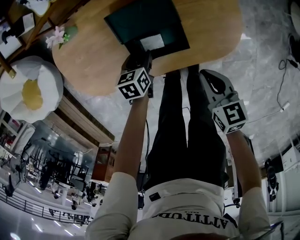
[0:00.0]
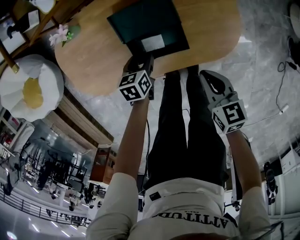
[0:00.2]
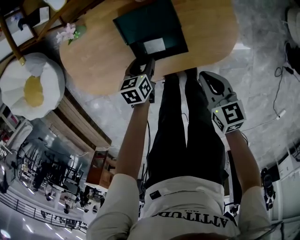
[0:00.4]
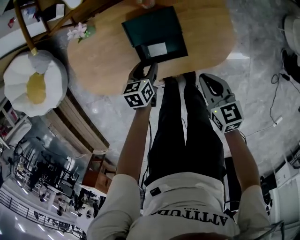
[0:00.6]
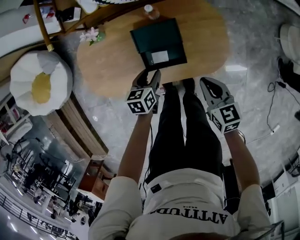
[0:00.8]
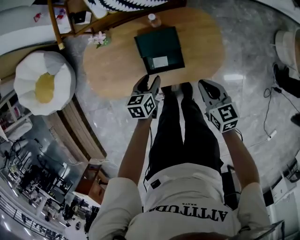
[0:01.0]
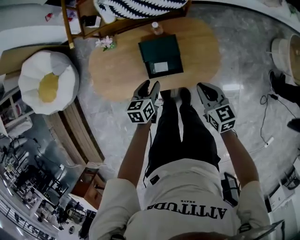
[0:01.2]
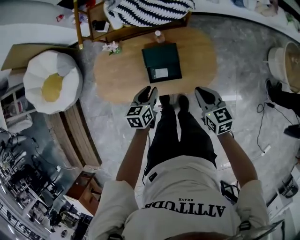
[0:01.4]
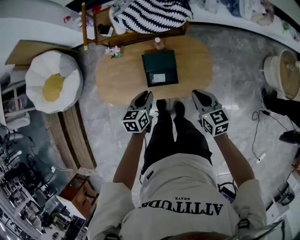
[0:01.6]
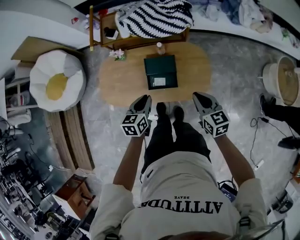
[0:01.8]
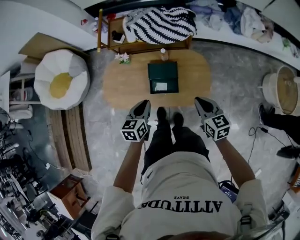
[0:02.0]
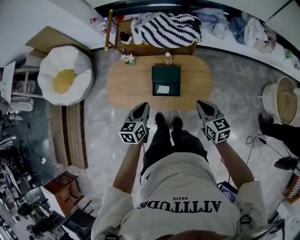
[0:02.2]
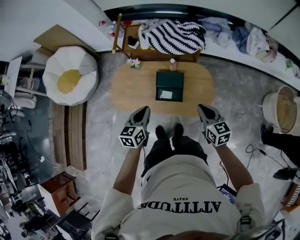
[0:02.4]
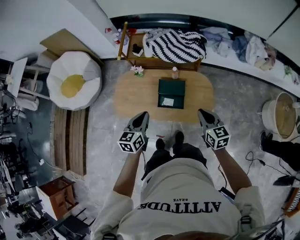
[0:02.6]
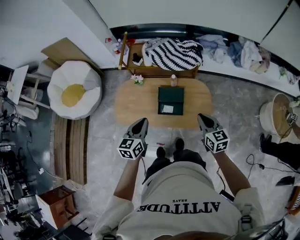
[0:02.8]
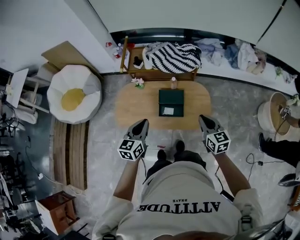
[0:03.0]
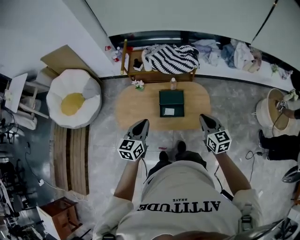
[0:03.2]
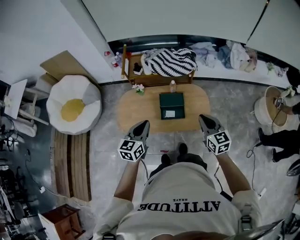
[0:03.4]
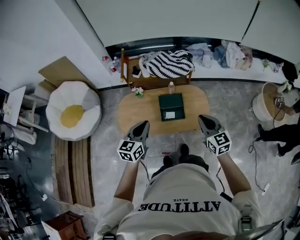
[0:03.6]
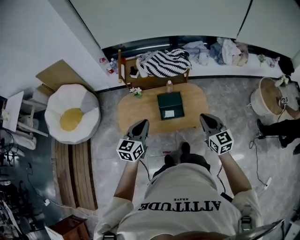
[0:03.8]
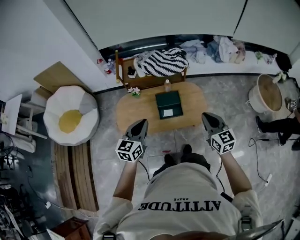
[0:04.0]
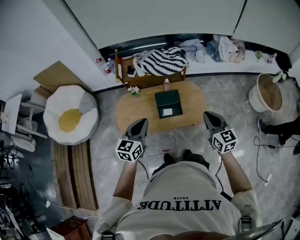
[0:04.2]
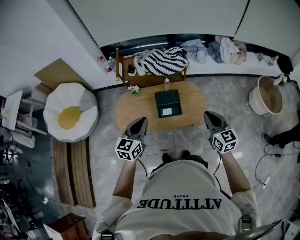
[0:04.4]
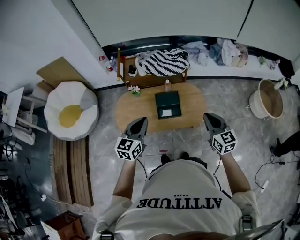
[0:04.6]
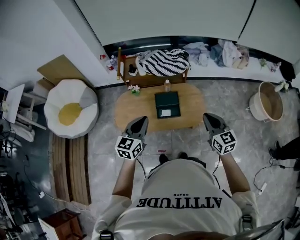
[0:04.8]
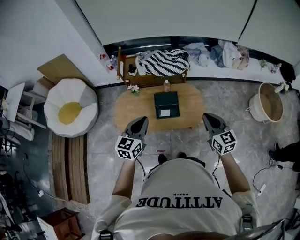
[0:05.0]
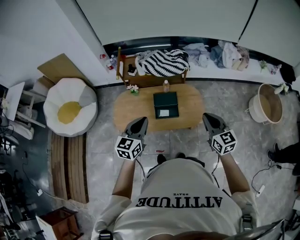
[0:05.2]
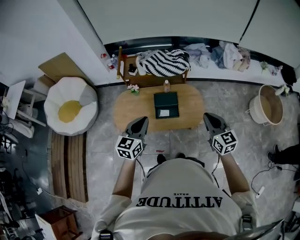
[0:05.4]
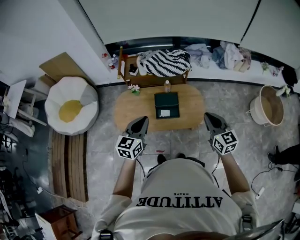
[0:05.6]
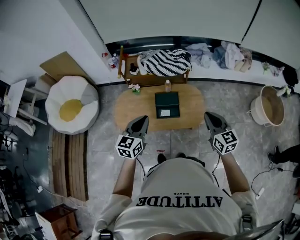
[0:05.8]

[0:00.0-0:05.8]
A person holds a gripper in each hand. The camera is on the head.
0:00.0 to 0:01.4: Both grippers move upward, approximately 30 cm. The left gripper closes.
0:01.4 to 0:02.8: The right gripper goes about 15 cm upward. Meanwhile the left gripper is displaced upward and backward by some 25 cm, rotates some 20 degrees, and closes its fingers.
0:02.8 to 0:04.4: The right gripper shifts about 15 cm backward and upward; the left gripper moves upward, backward and to the left, about 15 cm, and changes its angle by roughly 20 degrees.
0:04.4 to 0:05.8: The grippers make only small movements.

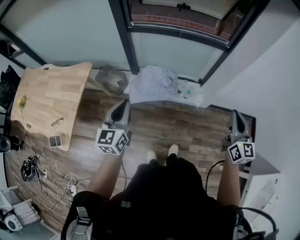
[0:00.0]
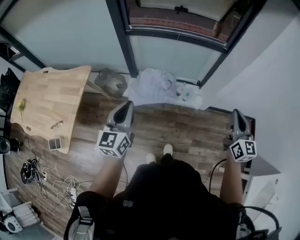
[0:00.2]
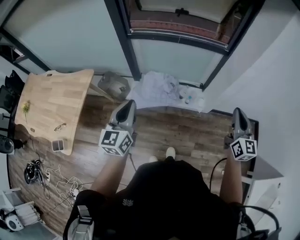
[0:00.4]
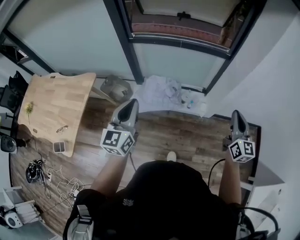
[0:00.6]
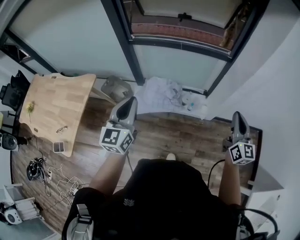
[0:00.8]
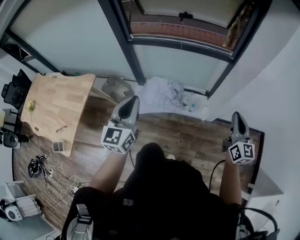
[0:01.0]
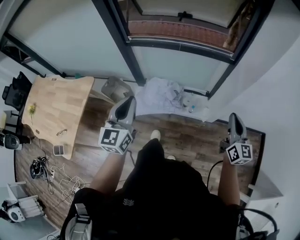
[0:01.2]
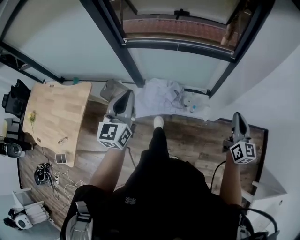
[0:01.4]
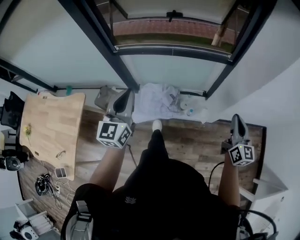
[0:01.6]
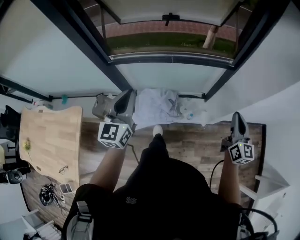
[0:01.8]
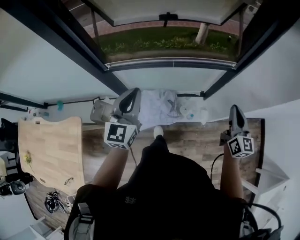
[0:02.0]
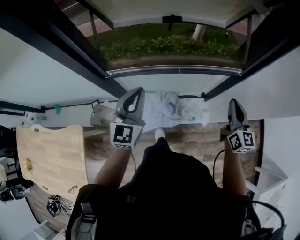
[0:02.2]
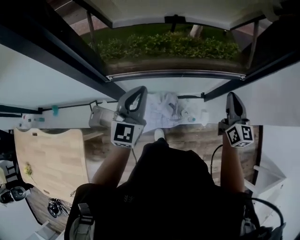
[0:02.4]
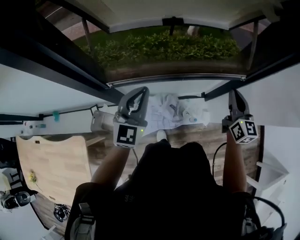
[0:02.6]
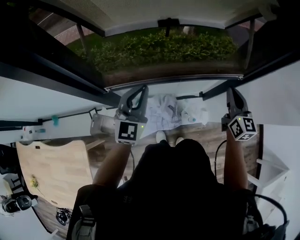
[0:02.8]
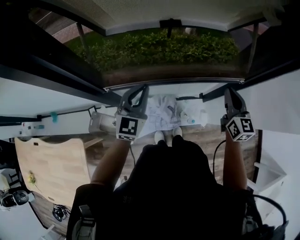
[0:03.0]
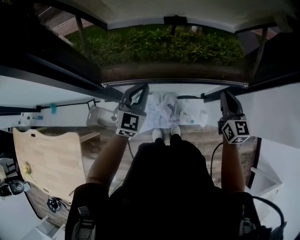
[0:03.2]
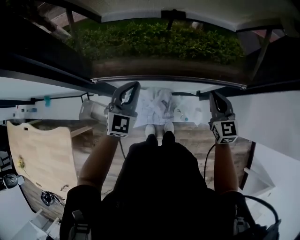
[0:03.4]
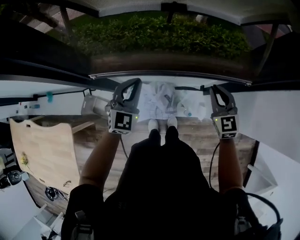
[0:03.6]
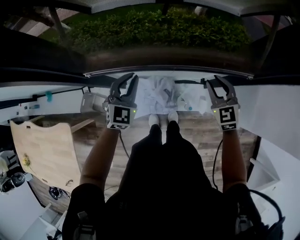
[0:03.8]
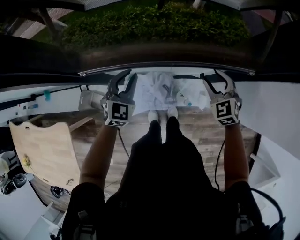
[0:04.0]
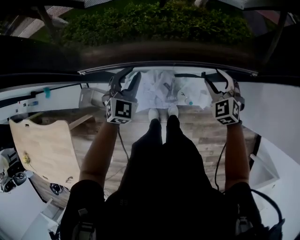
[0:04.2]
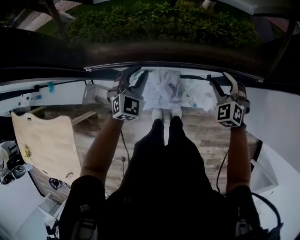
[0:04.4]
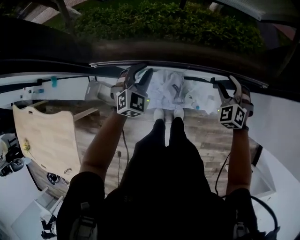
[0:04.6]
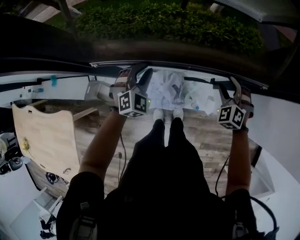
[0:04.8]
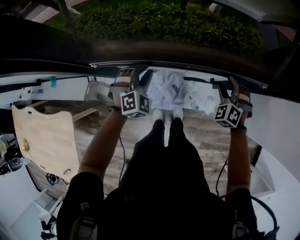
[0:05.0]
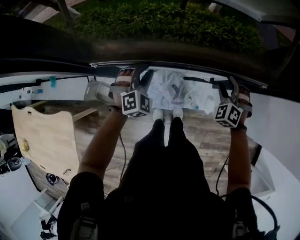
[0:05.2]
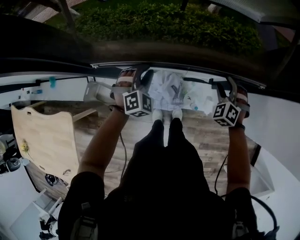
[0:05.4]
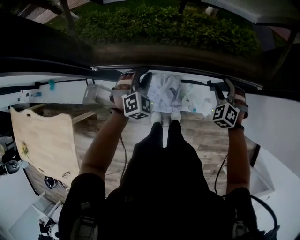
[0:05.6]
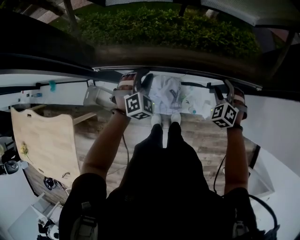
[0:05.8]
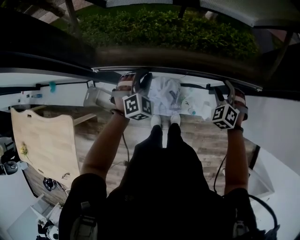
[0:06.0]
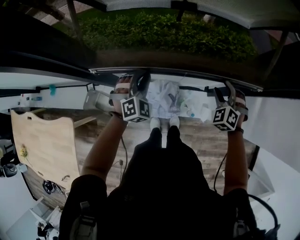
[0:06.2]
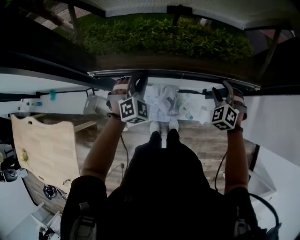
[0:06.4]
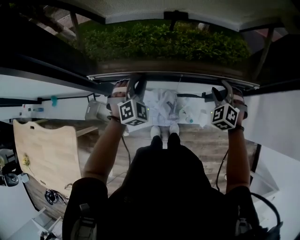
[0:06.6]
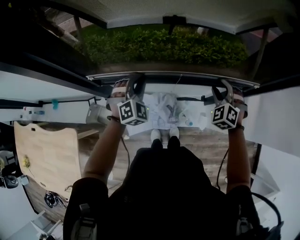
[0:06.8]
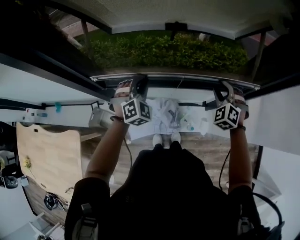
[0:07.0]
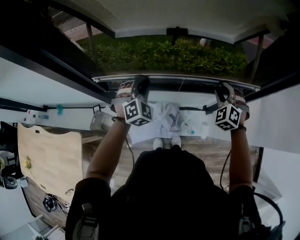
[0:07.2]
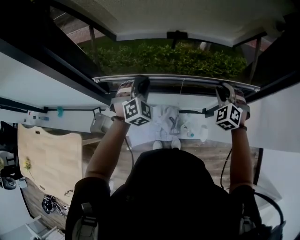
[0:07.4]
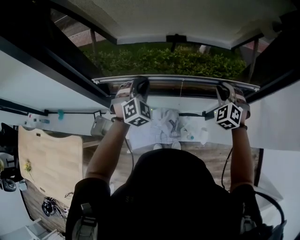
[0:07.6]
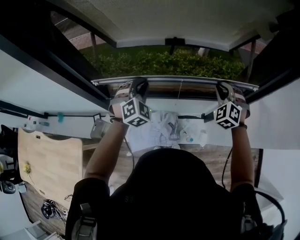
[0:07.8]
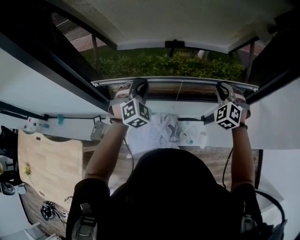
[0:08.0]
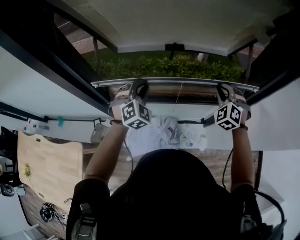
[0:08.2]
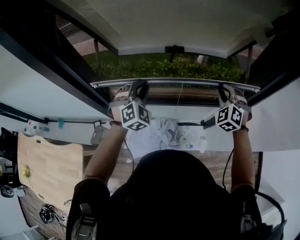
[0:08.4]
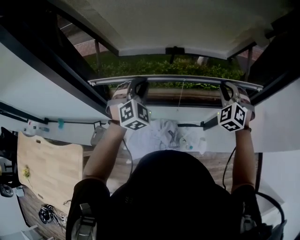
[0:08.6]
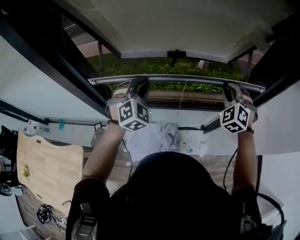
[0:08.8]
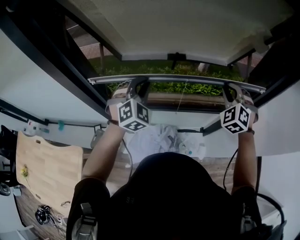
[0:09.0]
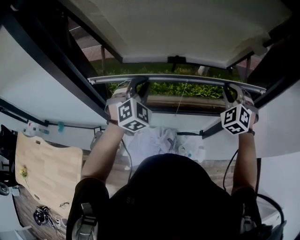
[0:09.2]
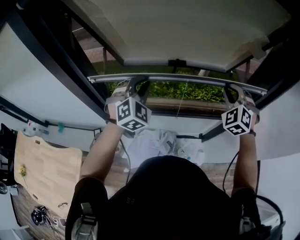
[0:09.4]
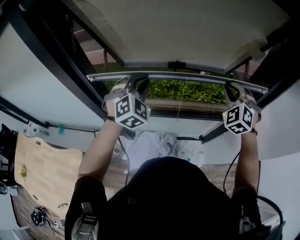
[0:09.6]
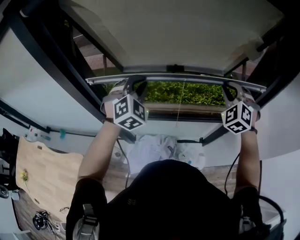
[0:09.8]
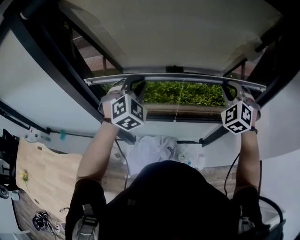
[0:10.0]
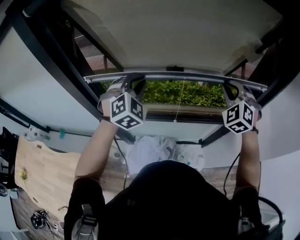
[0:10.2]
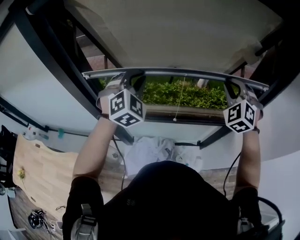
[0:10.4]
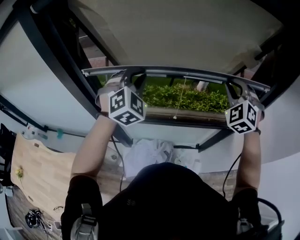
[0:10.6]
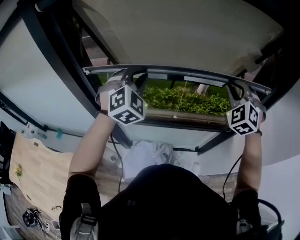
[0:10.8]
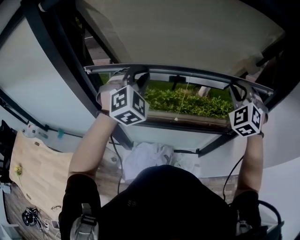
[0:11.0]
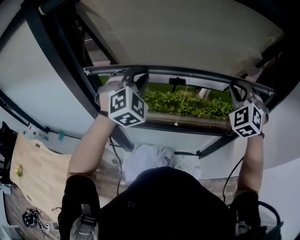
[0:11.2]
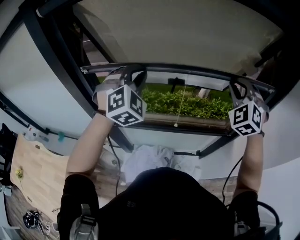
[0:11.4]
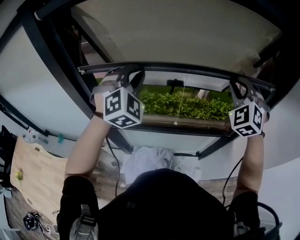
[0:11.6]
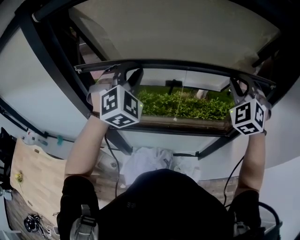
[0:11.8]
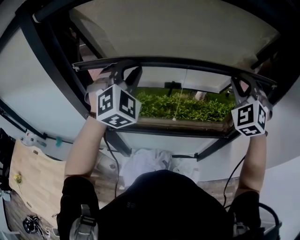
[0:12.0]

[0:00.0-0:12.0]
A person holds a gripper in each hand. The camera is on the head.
0:00.0 to 0:01.6: The grippers both shift forward by approximately 25 cm.
0:01.6 to 0:03.0: The left gripper goes approximately 35 cm forward, and changes its angle by about 20 degrees, while the right gripper goes approximately 40 cm forward and to the left.
0:03.0 to 0:04.4: Both grippers move downward, approximately 20 cm. The right gripper rotates around the line of its fingers by roughly 60 degrees, counterclockwise from behind, and opens its fingers, while the left gripper swivels approximately 30 degrees, and opens.
0:06.0 to 0:07.6: Both grippers travel together upward, roughly 15 cm. The right gripper closes its fingers.
0:07.6 to 0:09.0: The two grippers go about 10 cm upward.
0:09.0 to 0:10.4: The grippers both shift upward by some 10 cm.
0:10.4 to 0:12.0: Both grippers move upward, roughly 10 cm.

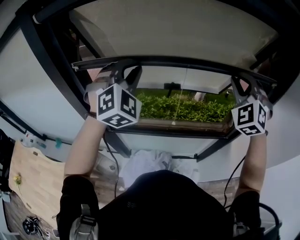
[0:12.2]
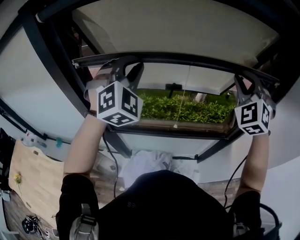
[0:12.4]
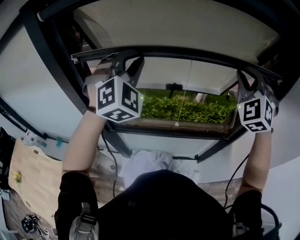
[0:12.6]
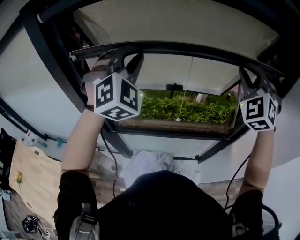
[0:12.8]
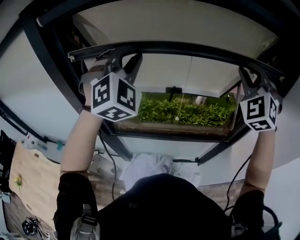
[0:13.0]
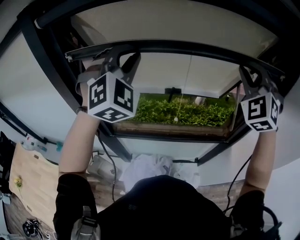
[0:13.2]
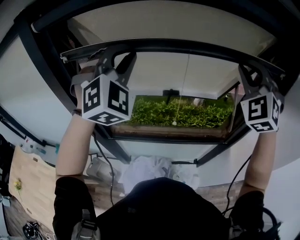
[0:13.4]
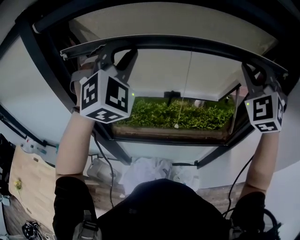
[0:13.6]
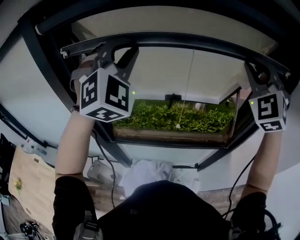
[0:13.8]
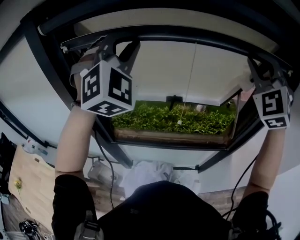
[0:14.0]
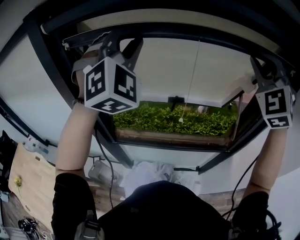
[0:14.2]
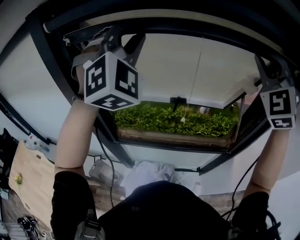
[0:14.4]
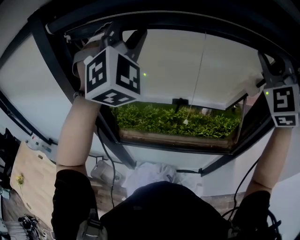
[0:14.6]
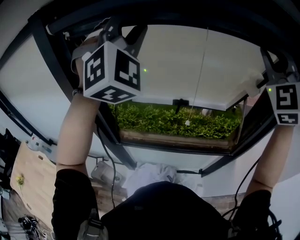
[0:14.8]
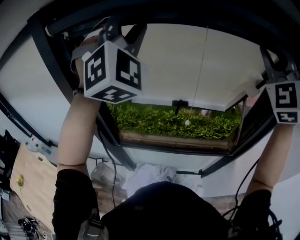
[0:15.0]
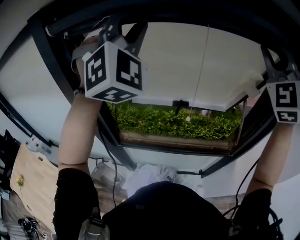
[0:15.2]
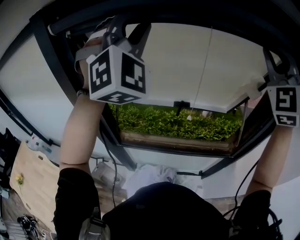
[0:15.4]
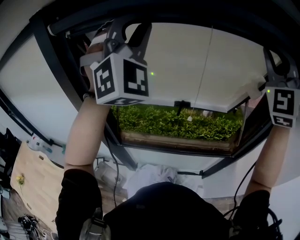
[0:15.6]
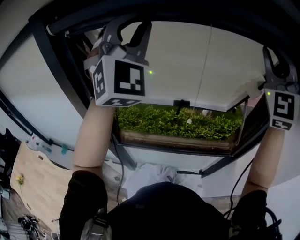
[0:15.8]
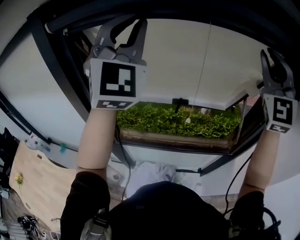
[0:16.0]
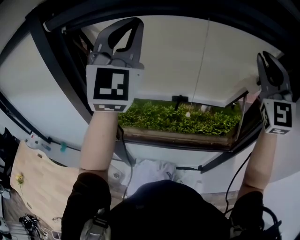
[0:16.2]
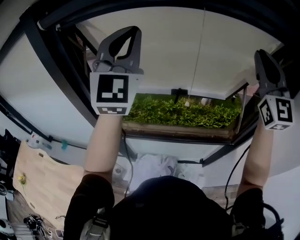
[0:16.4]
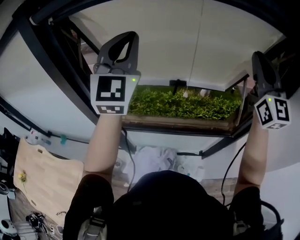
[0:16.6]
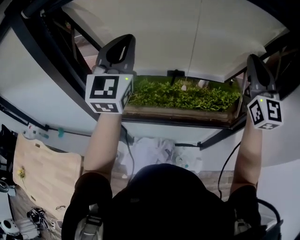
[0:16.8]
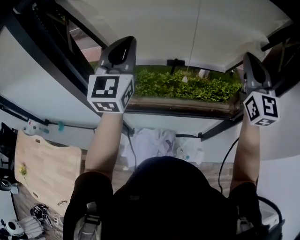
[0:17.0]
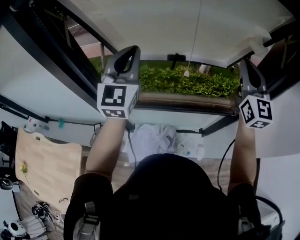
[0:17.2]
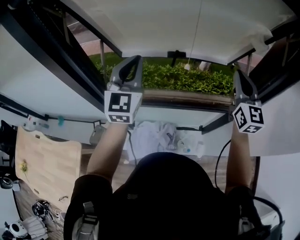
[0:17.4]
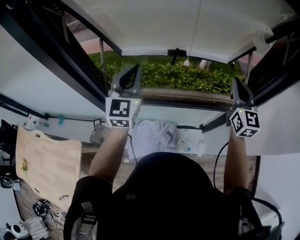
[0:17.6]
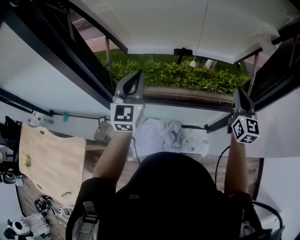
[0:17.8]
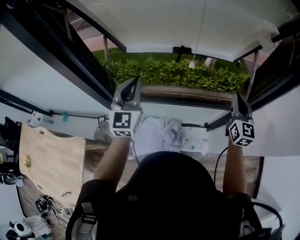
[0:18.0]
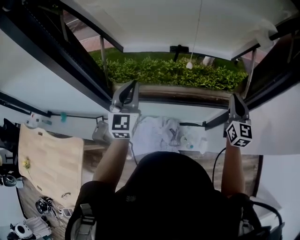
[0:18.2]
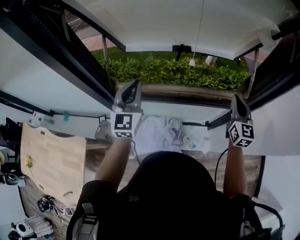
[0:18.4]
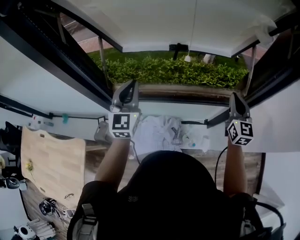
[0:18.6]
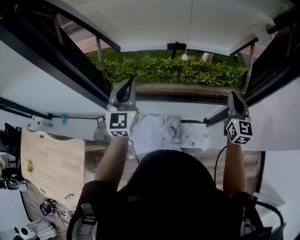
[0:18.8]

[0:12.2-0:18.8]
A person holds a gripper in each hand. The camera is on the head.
0:12.2 to 0:13.8: The two grippers go some 15 cm upward.
0:13.8 to 0:15.4: Both grippers move upward, roughly 10 cm.
0:15.4 to 0:17.2: Both grippers travel together downward, some 25 cm. The right gripper rotates around the line of its fingers by approximately 60 degrees, clockwise from behind, while the left gripper twists about 60 degrees counterclockwise, seen from behind.
0:17.2 to 0:18.8: The two grippers go approximately 20 cm downward. The right gripper swivels some 20 degrees.
